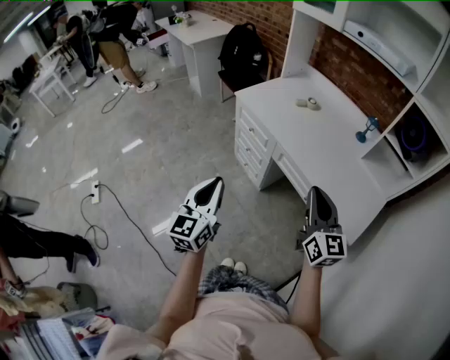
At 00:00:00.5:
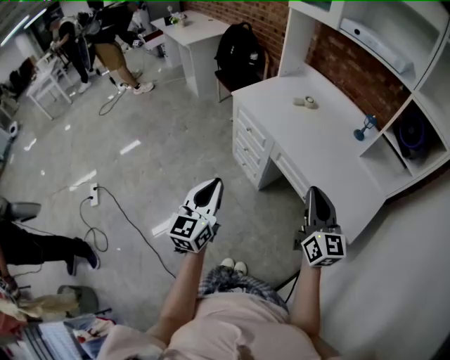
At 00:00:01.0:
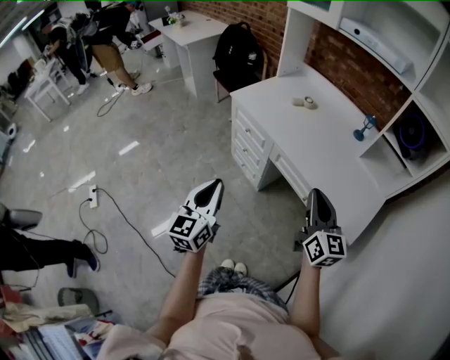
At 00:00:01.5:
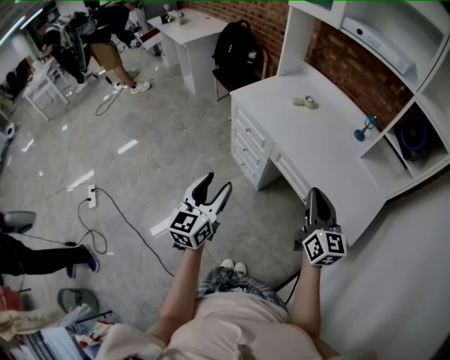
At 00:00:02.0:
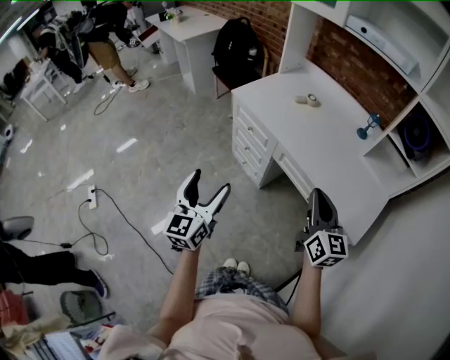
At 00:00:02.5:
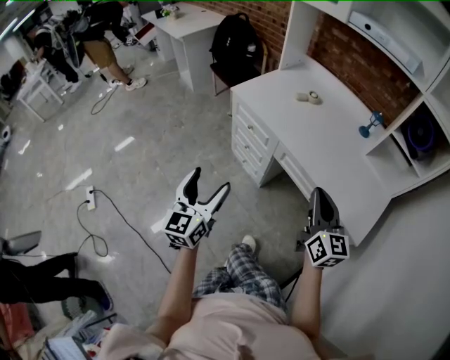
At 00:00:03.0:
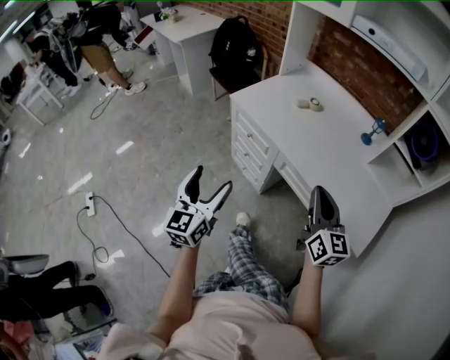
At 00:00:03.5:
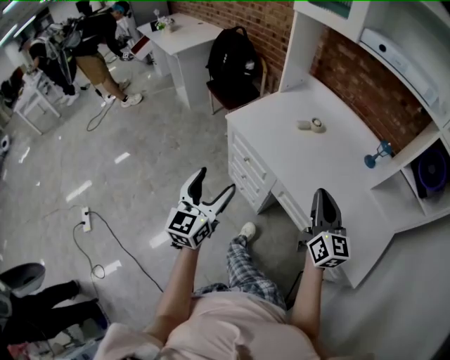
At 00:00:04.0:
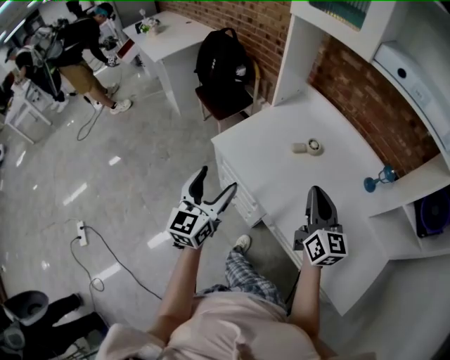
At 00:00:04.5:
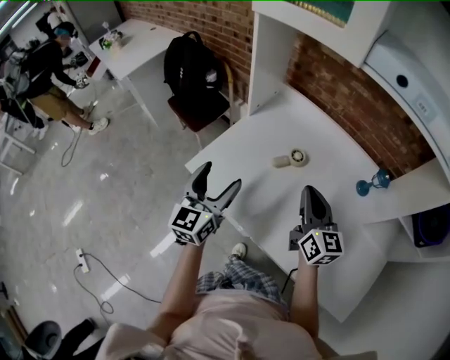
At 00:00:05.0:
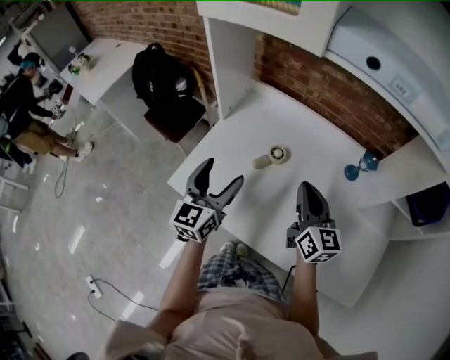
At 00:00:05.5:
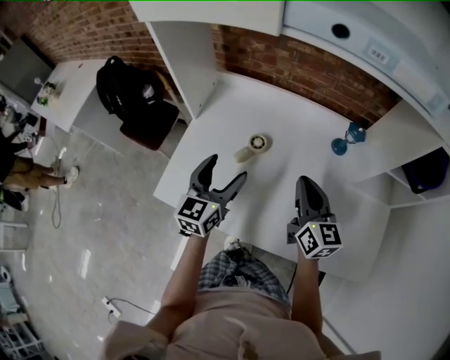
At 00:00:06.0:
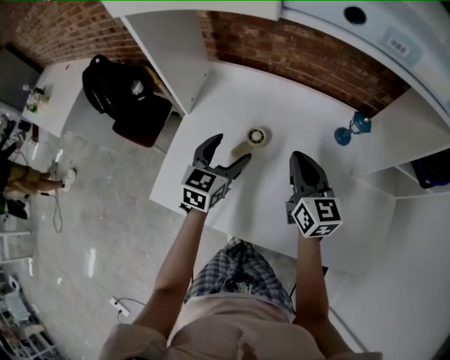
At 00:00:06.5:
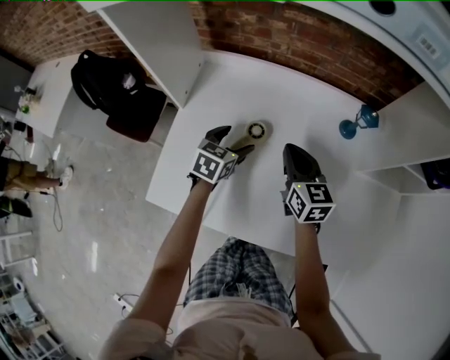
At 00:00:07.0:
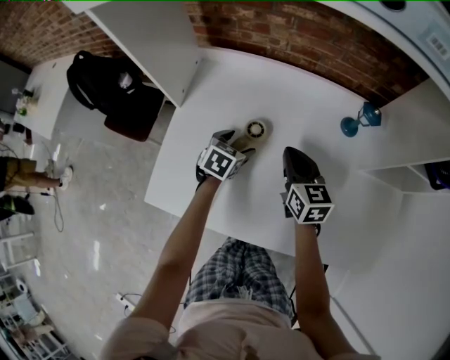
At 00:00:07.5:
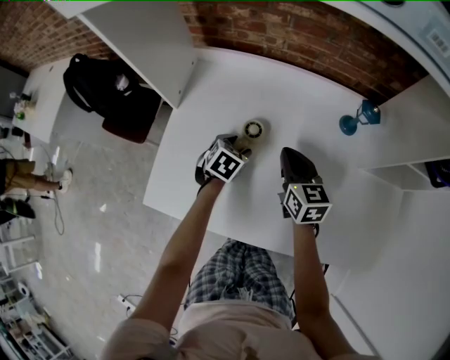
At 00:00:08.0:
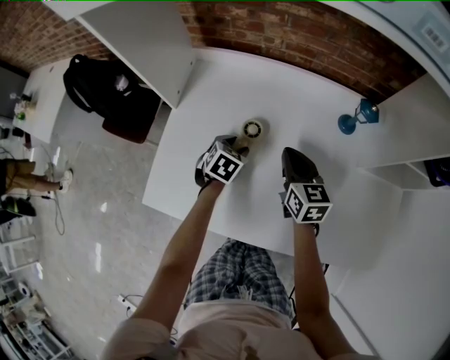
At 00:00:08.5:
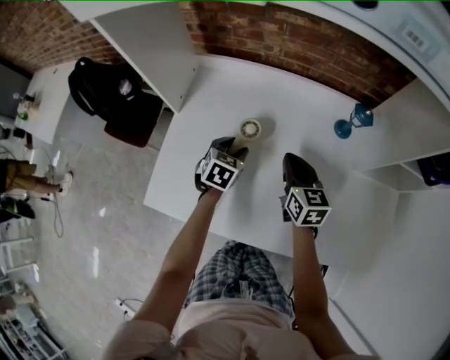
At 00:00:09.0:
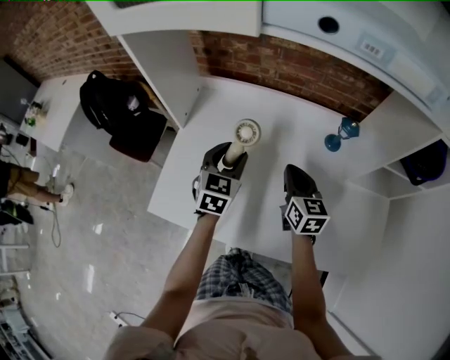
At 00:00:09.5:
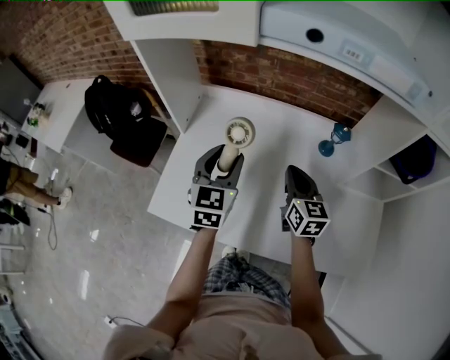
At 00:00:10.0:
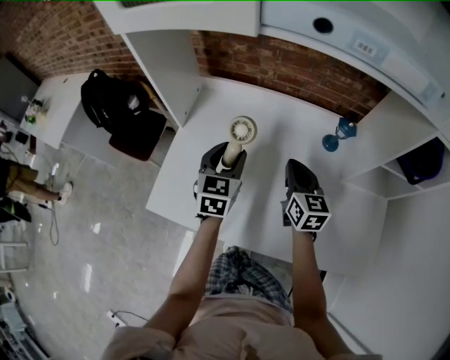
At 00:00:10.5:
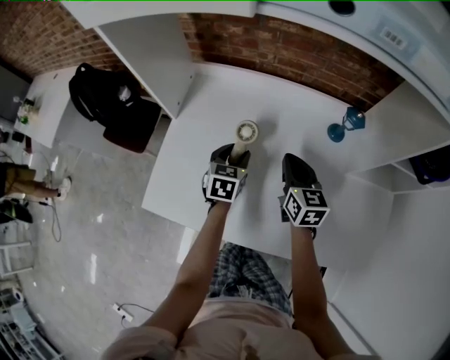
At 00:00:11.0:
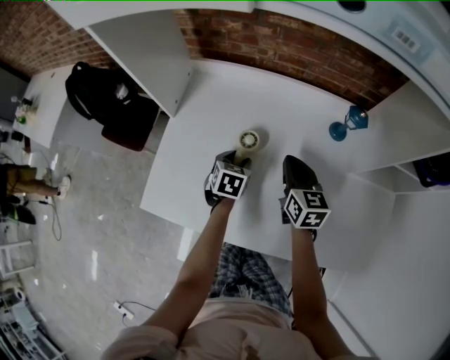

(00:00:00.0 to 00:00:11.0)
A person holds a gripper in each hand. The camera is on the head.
00:00:00.0 - 00:00:02.0: The left gripper ends up roughly 5 cm from where it was, and opens up.
00:00:02.0 - 00:00:03.5: The grippers both shift forward by roughly 20 cm.
00:00:03.5 - 00:00:05.5: The right gripper moves approximately 35 cm, and turns by roughly 20 degrees, while the left gripper shifts by about 50 cm, and rotates approximately 40 degrees.
00:00:05.5 - 00:00:07.5: The right gripper moves downward and forward, roughly 15 cm, while the left gripper travels downward and forward by approximately 25 cm, and points its fingers some 50 degrees further downward.
00:00:07.5 - 00:00:09.0: The right gripper travels upward by roughly 5 cm. The left gripper shifts about 20 cm upward, and turns by some 30 degrees.
00:00:09.0 - 00:00:11.0: The left gripper goes about 15 cm downward, and changes its angle by roughly 30 degrees, while the right gripper ends up approximately 5 cm from where it was.

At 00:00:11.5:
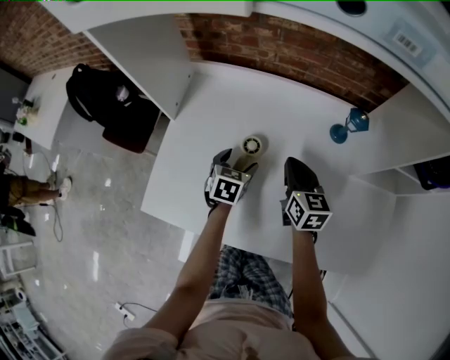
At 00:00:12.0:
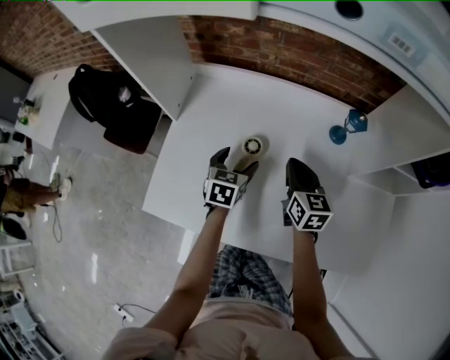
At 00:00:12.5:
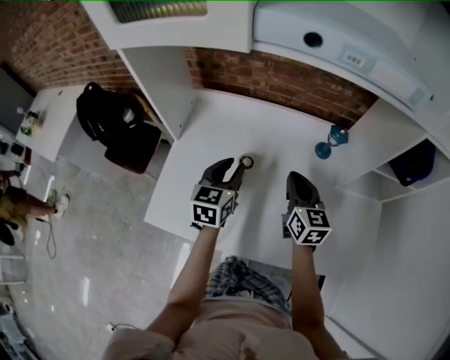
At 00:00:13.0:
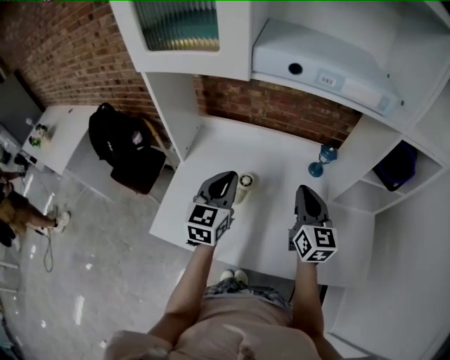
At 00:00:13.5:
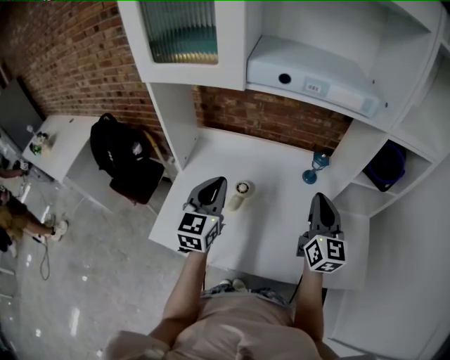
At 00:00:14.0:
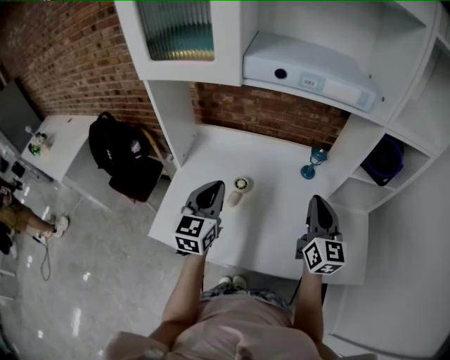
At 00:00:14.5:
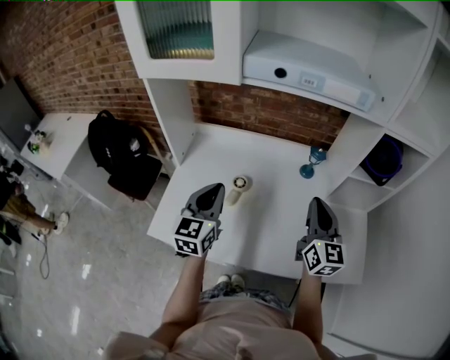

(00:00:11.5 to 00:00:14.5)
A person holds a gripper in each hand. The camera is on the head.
00:00:11.5 - 00:00:13.0: The right gripper shifts about 20 cm upward and backward, and rotates approximately 20 degrees. The left gripper shifts some 30 cm upward, angles its fingers upward, by about 40 degrees, and closes.
00:00:13.0 - 00:00:14.5: The left gripper goes roughly 5 cm backward. The right gripper heads backward and to the right, covering approximately 10 cm.

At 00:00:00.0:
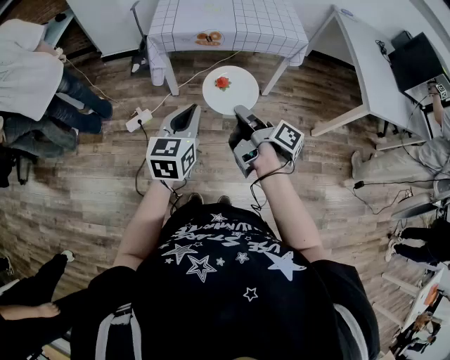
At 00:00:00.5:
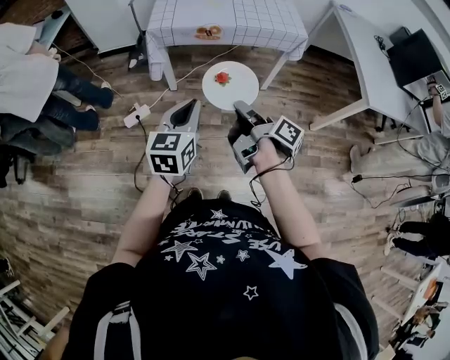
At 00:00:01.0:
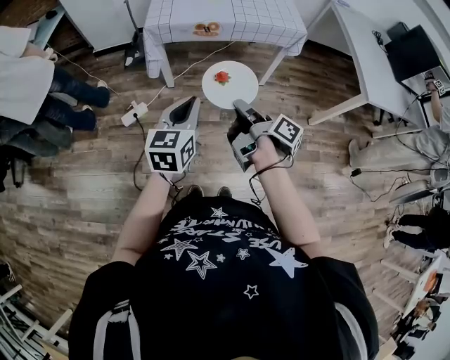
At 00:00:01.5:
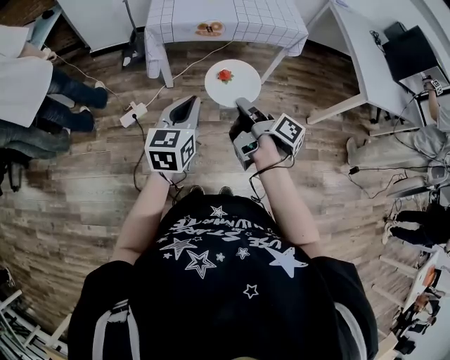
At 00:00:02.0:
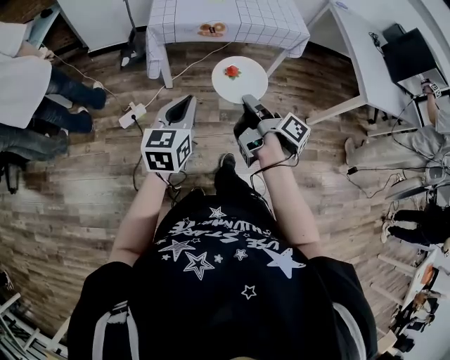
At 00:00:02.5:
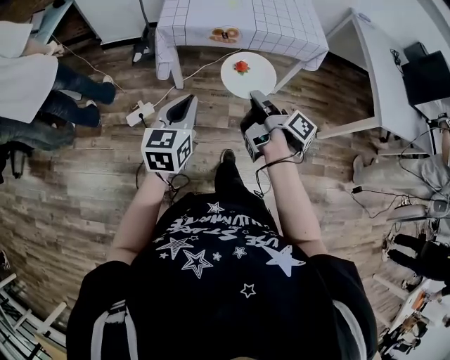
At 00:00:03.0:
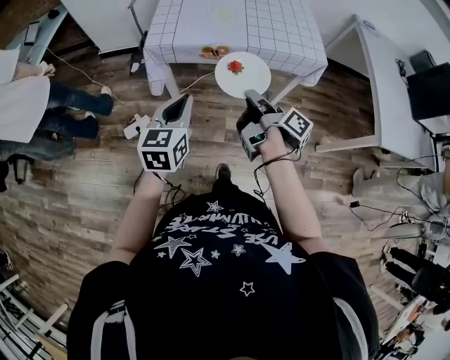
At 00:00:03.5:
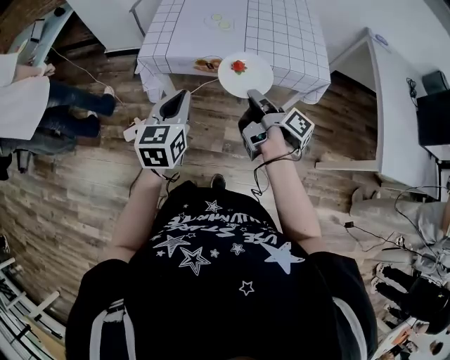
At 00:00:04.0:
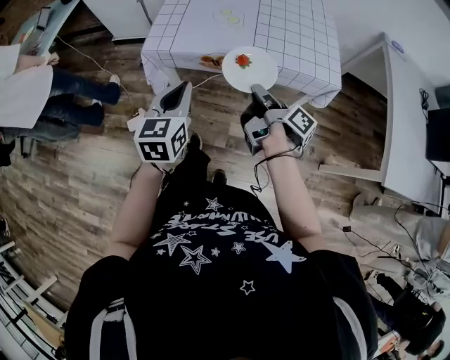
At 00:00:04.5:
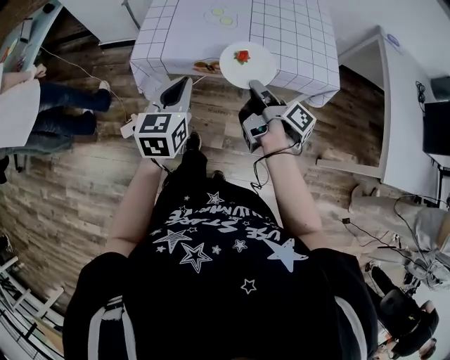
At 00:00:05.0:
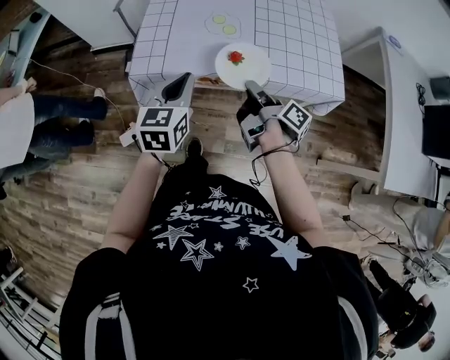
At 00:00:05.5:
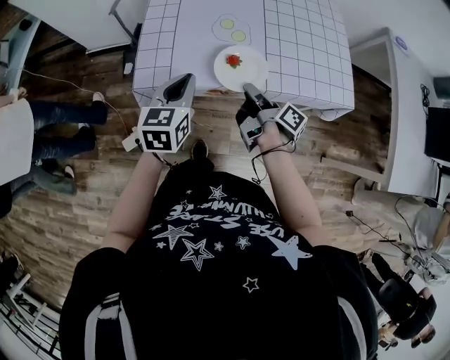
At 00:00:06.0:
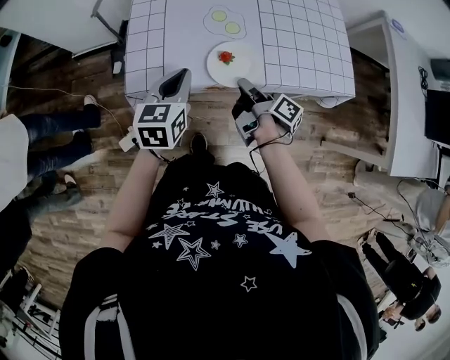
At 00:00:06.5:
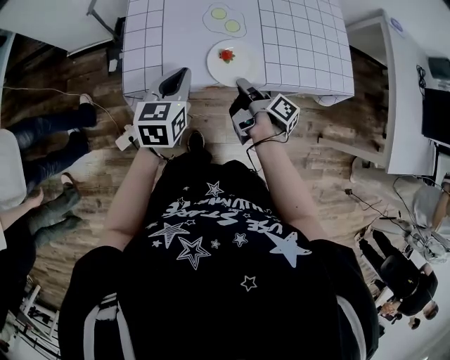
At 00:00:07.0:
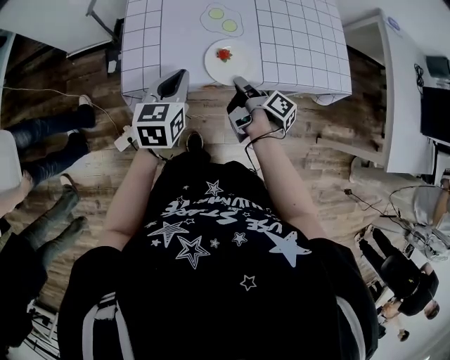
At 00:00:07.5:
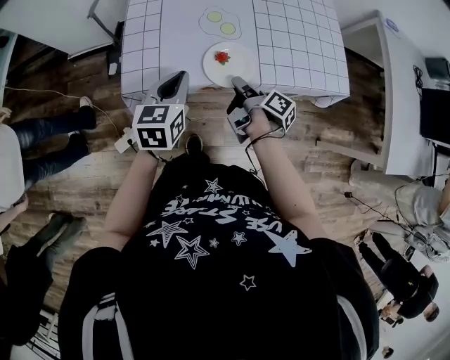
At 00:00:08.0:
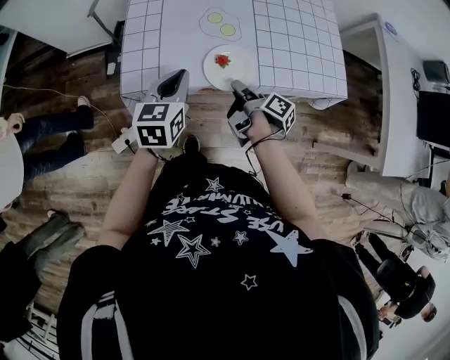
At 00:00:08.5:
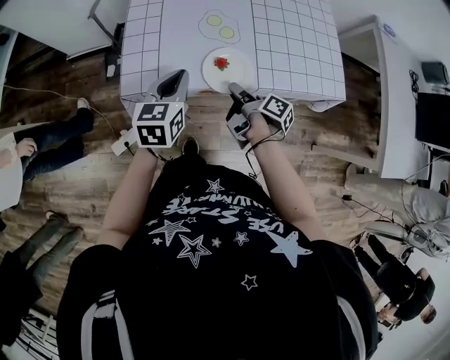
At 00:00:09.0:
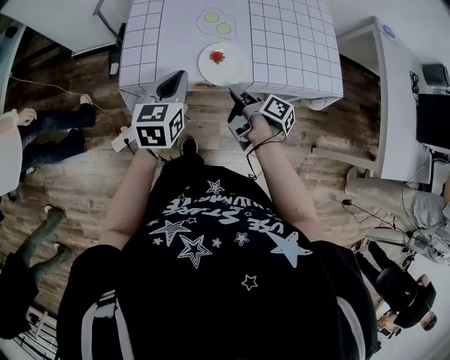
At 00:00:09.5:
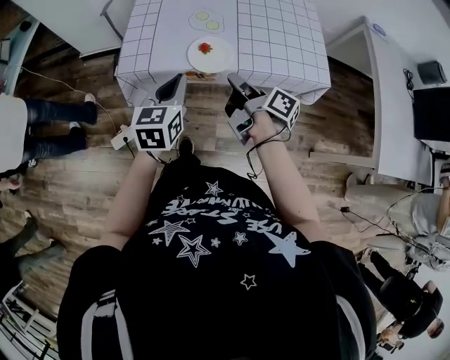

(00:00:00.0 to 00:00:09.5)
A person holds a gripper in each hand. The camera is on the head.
00:00:00.0 - 00:00:02.0: The left gripper moves about 10 cm.
00:00:02.0 - 00:00:04.0: The left gripper shifts by roughly 30 cm.
00:00:04.0 - 00:00:05.5: The left gripper ends up about 20 cm from where it was.
00:00:07.5 - 00:00:09.5: The left gripper shifts by roughly 10 cm.

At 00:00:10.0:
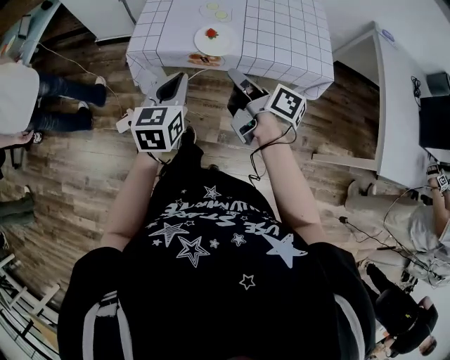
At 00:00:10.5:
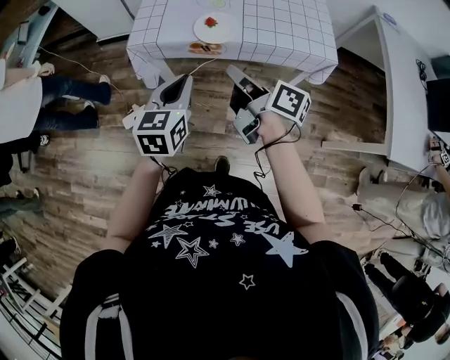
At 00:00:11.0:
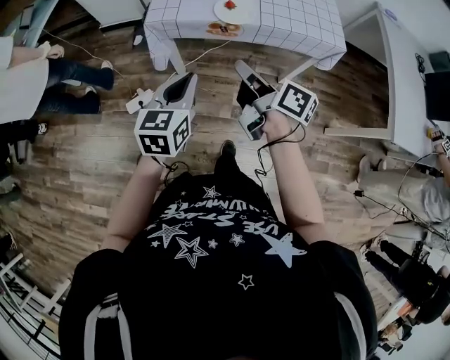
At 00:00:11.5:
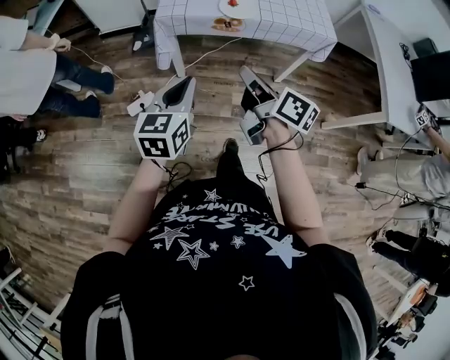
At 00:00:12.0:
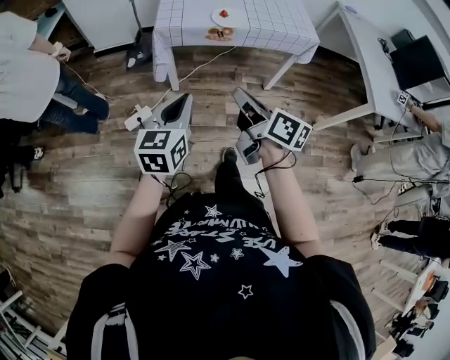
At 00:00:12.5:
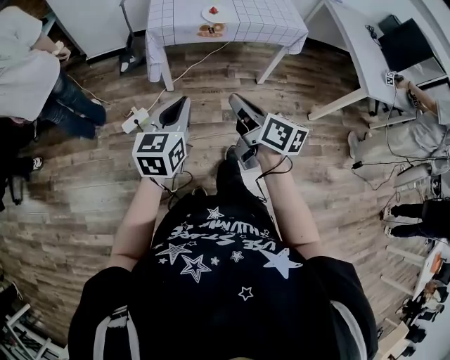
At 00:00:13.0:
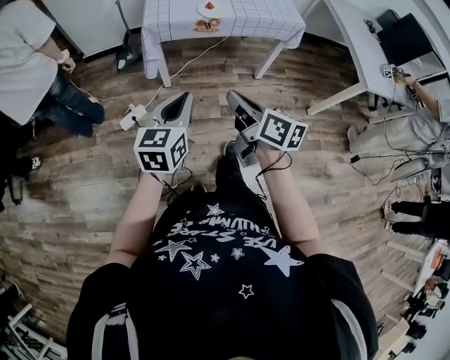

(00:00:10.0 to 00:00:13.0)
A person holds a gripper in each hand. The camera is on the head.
00:00:10.0 - 00:00:11.5: The left gripper ends up about 25 cm from where it was.
00:00:11.5 - 00:00:13.0: The left gripper shifts by roughly 10 cm.
